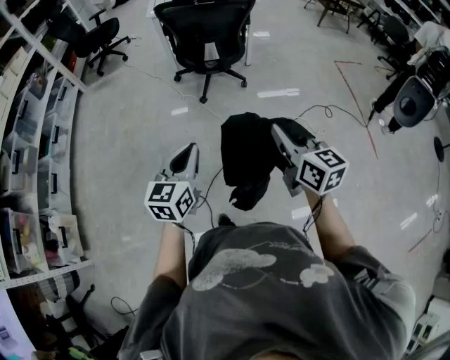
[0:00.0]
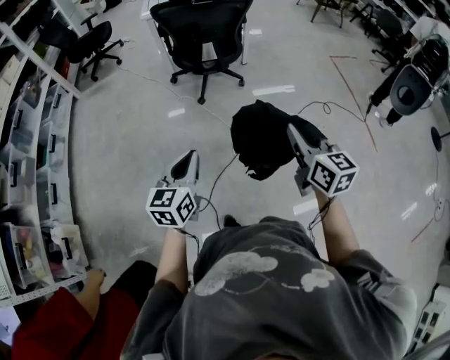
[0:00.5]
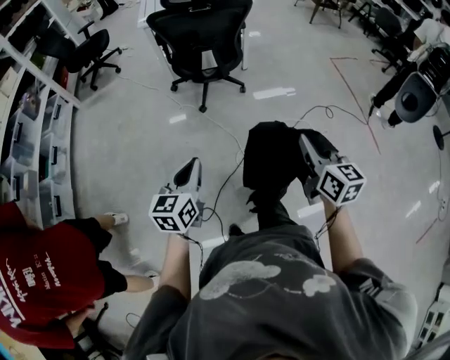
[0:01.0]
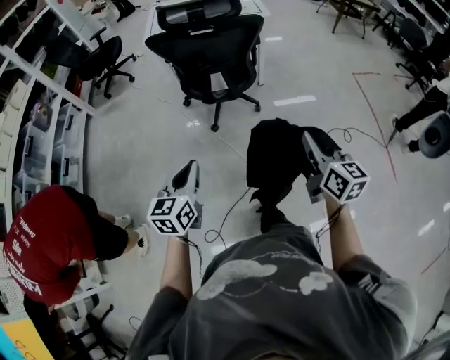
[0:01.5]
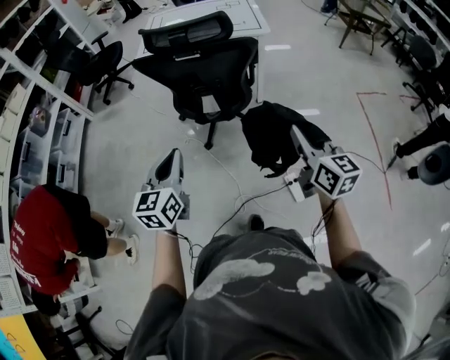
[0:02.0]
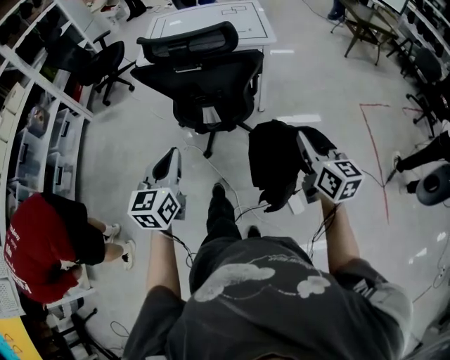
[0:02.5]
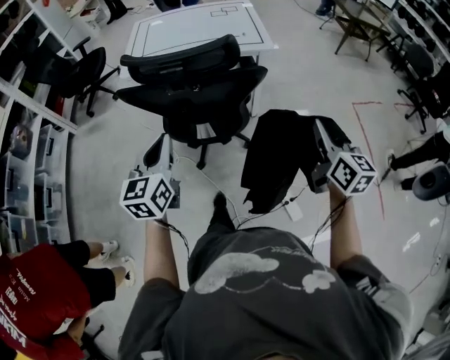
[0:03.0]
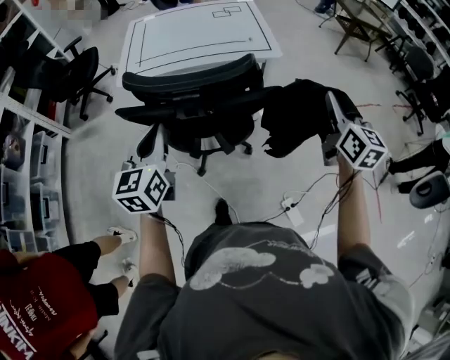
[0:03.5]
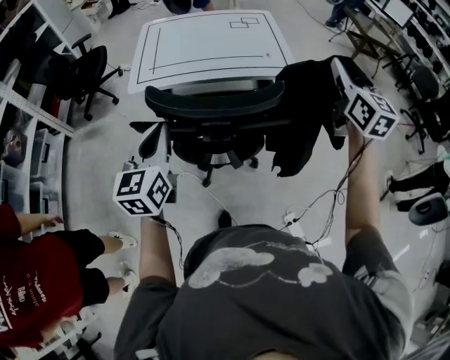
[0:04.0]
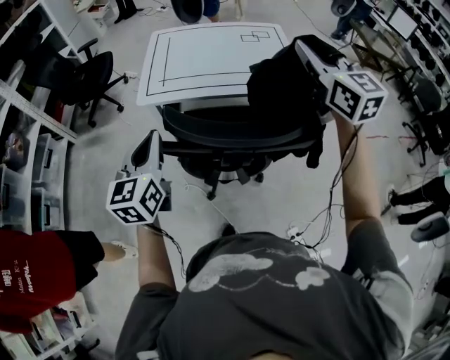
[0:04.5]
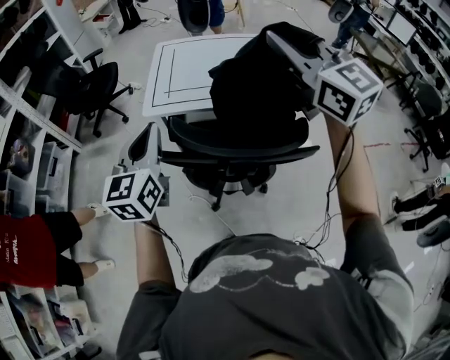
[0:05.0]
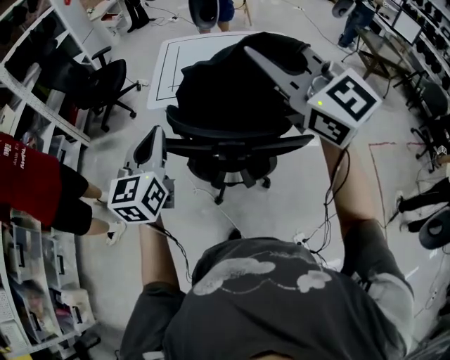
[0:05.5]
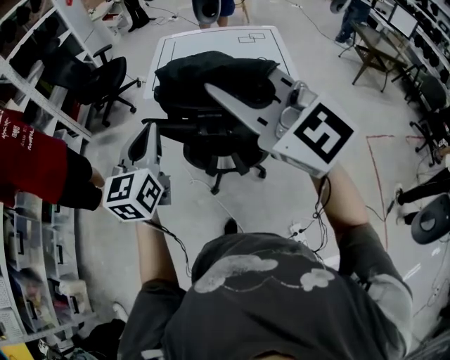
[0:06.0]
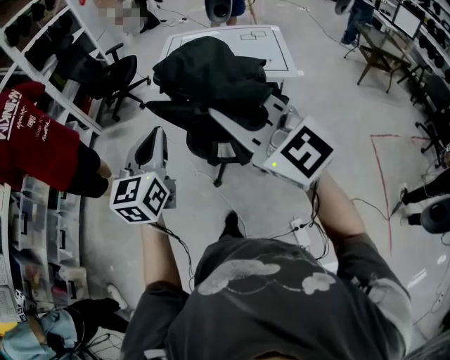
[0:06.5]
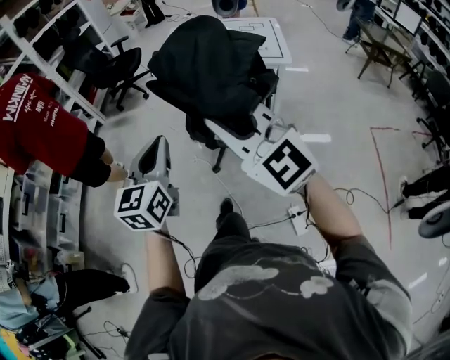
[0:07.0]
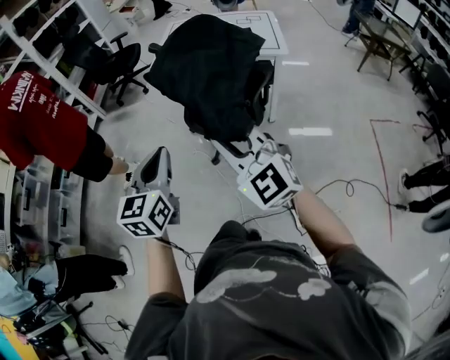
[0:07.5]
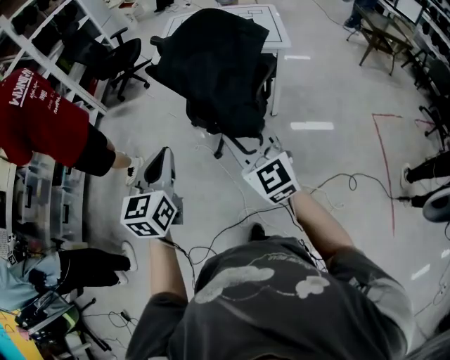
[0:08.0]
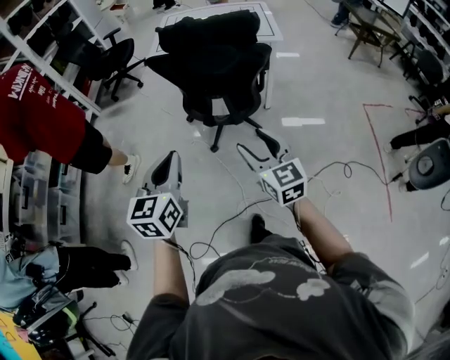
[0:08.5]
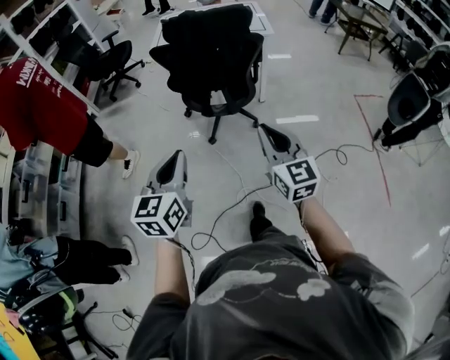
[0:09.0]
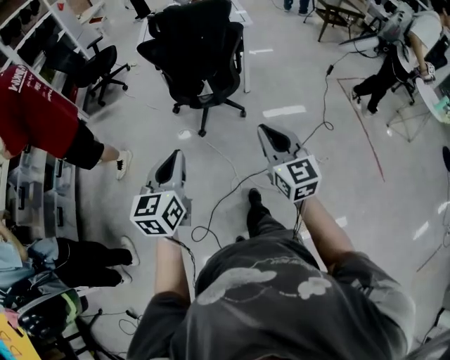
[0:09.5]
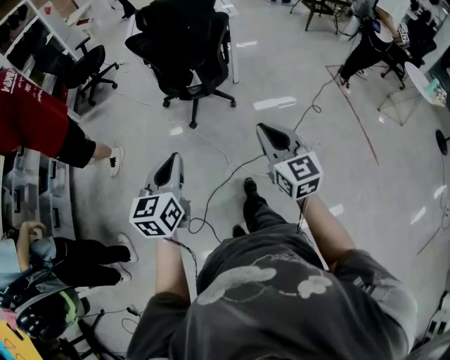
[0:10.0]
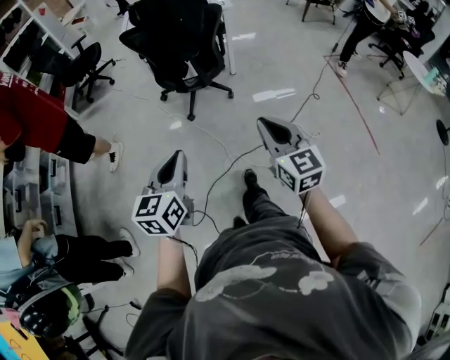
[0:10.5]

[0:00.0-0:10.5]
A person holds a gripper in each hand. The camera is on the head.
0:00.0 to 0:02.0: Both grippers travel together forward, about 40 cm.
0:02.0 to 0:04.0: Both grippers are carried forward, roughly 40 cm. The right gripper swivels approximately 20 degrees.
0:04.0 to 0:06.5: The left gripper changes place by about 20 cm. The right gripper changes place by roughly 40 cm, and rotates about 50 degrees.
0:06.5 to 0:08.5: The left gripper moves backward, some 25 cm. The right gripper goes some 30 cm downward and backward, rotates some 30 degrees, and opens its fingers.
0:08.5 to 0:10.5: Both grippers travel together backward, some 30 cm. The right gripper closes up.

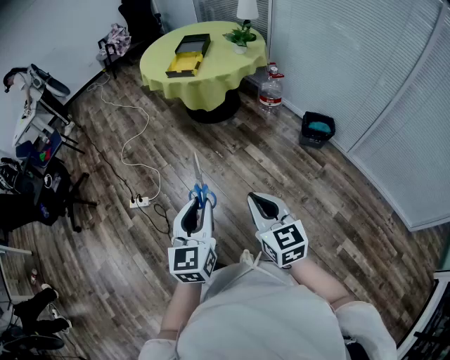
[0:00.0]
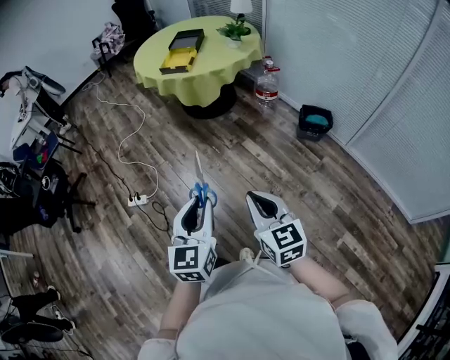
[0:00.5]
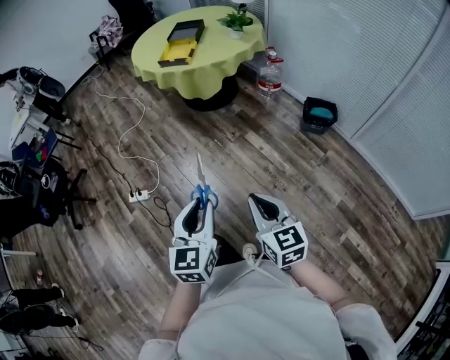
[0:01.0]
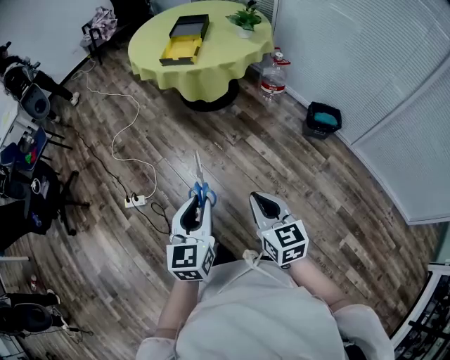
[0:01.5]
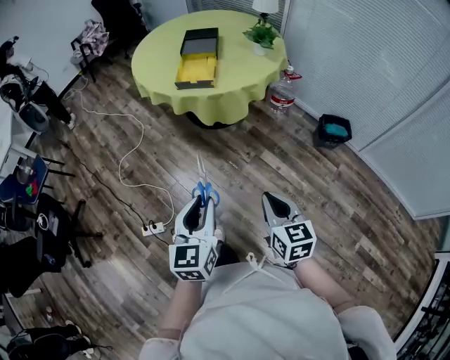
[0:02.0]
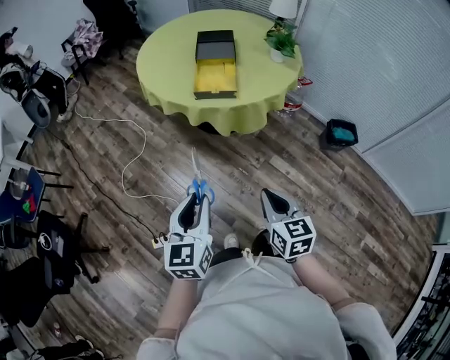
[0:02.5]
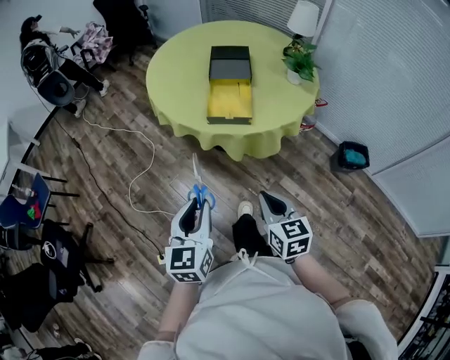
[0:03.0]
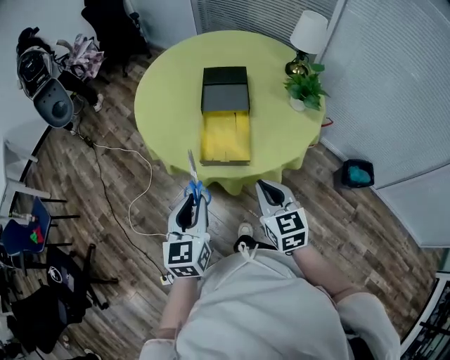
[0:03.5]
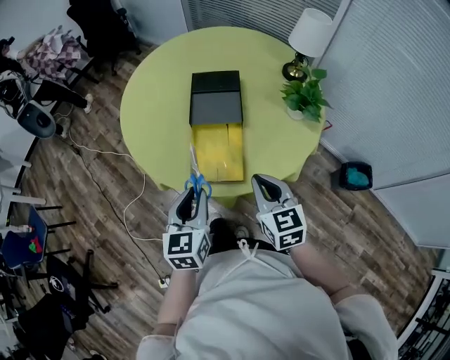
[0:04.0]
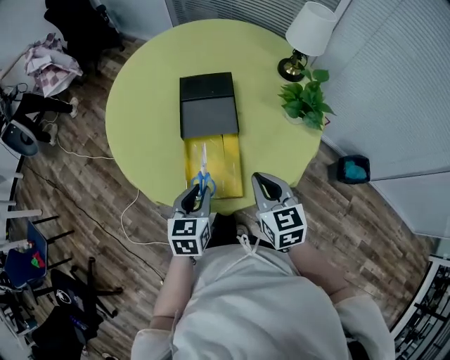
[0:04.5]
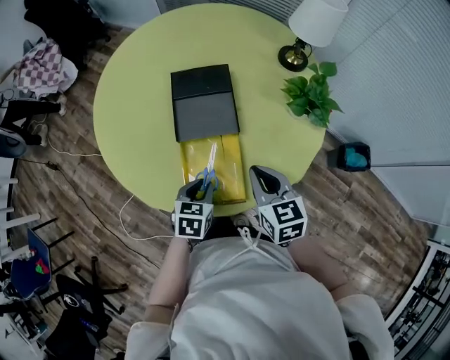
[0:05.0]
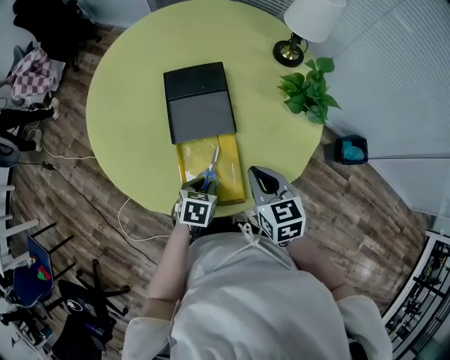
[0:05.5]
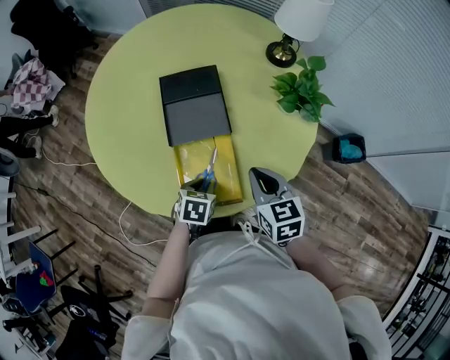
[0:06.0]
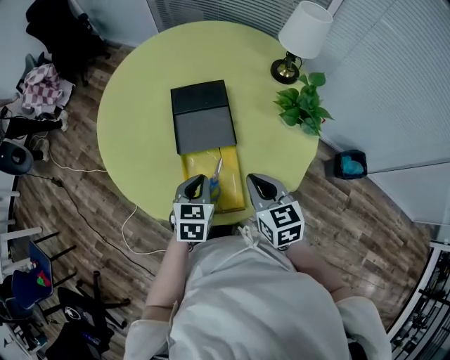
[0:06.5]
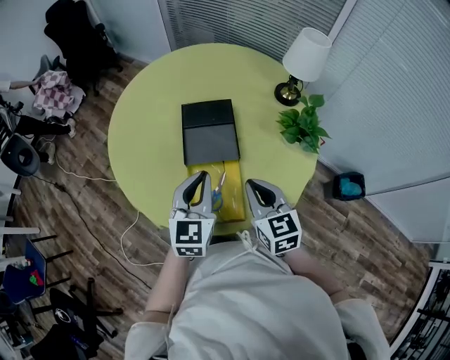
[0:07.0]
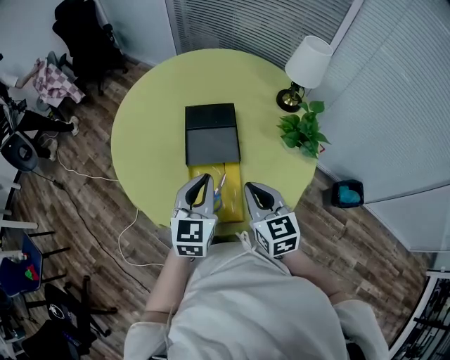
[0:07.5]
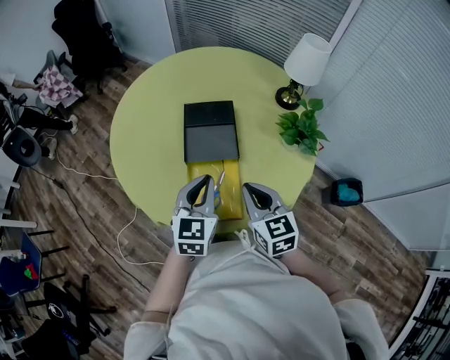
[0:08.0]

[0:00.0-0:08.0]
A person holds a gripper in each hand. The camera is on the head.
0:00.0 to 0:02.0: Both grippers move forward and to the left, some 35 cm.
0:02.0 to 0:04.0: Both grippers are carried forward, about 60 cm.
0:04.0 to 0:06.0: The right gripper heads forward and downward, covering about 15 cm, while the left gripper travels downward and forward by about 25 cm, and tilts its fingers some 40 degrees downward.
0:06.0 to 0:08.0: The left gripper travels upward by approximately 25 cm, and tips its fingers upward by roughly 40 degrees; the right gripper shifts about 10 cm upward.

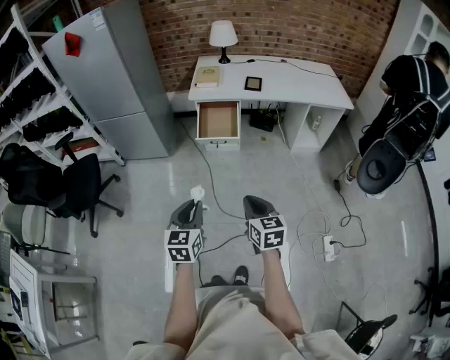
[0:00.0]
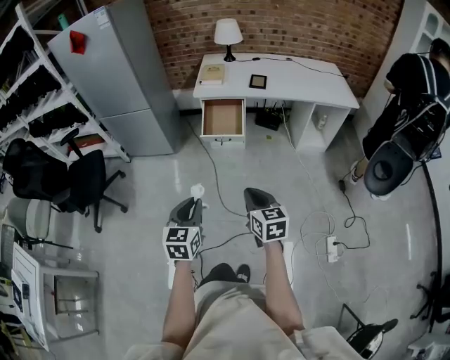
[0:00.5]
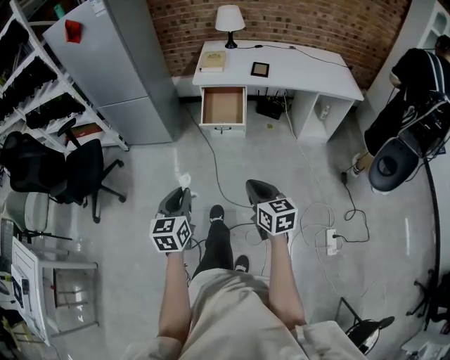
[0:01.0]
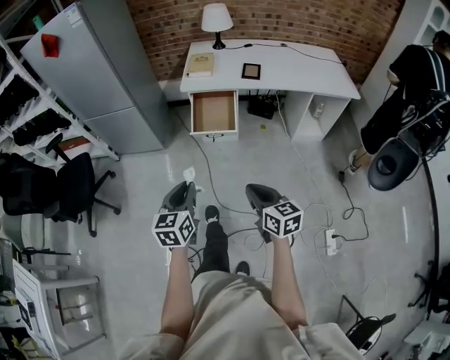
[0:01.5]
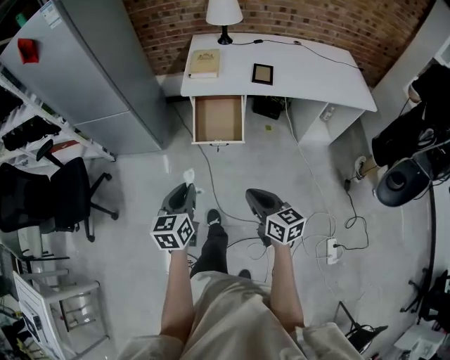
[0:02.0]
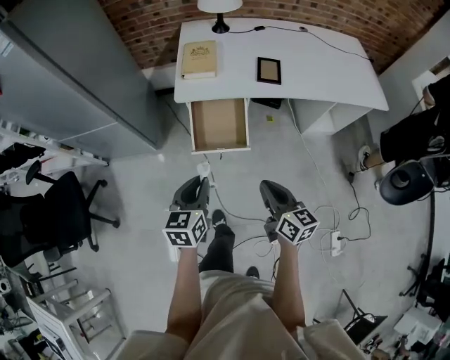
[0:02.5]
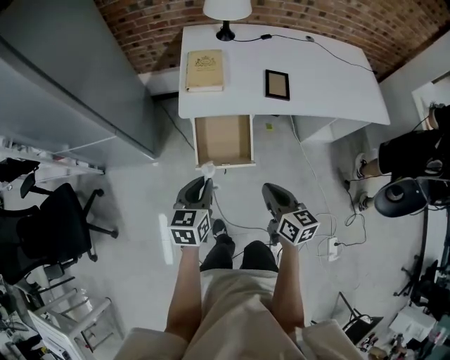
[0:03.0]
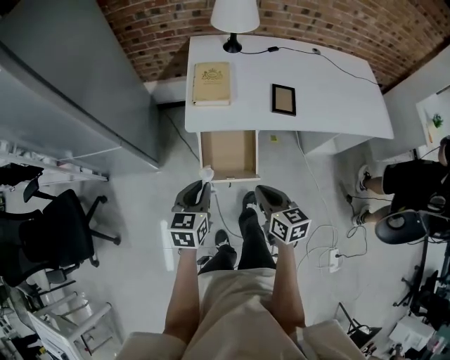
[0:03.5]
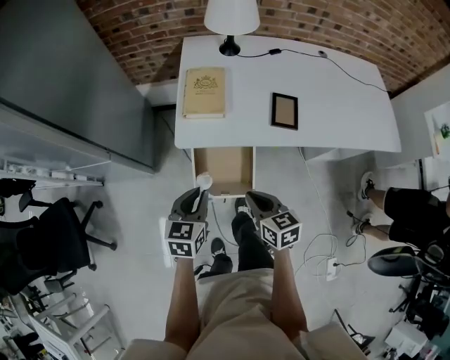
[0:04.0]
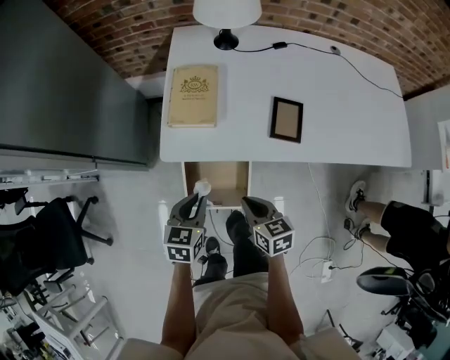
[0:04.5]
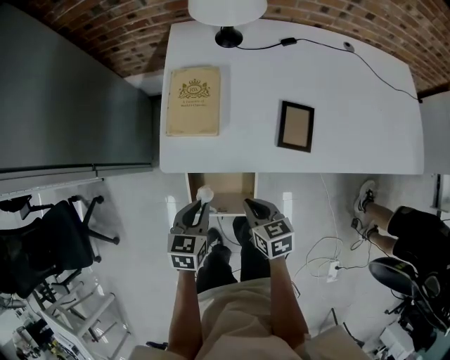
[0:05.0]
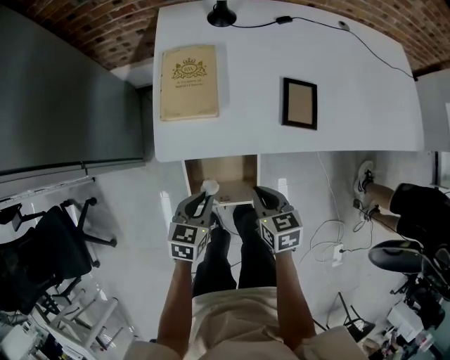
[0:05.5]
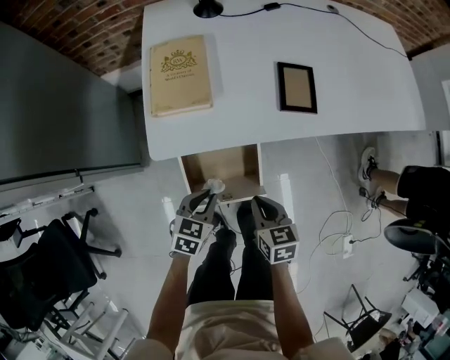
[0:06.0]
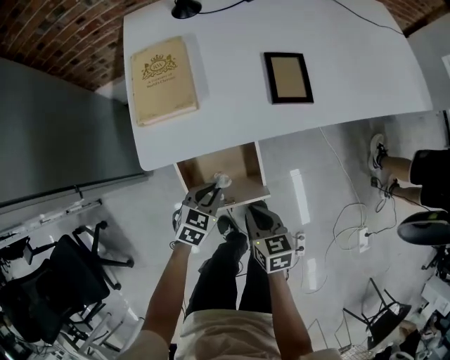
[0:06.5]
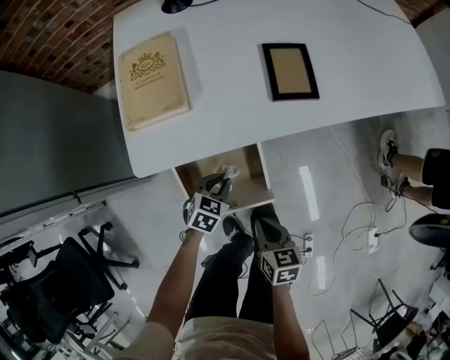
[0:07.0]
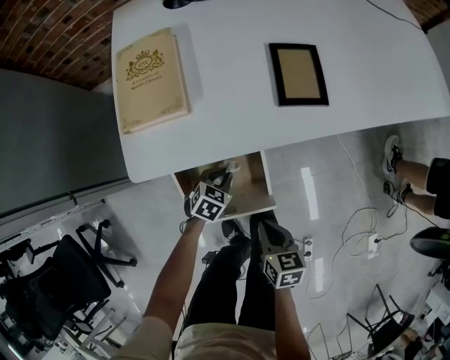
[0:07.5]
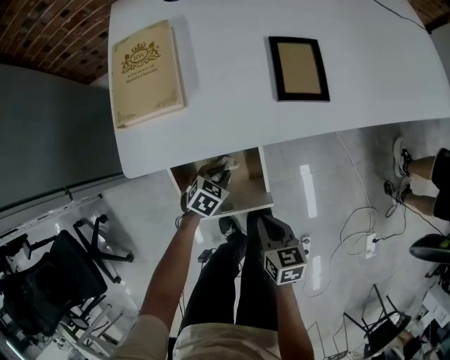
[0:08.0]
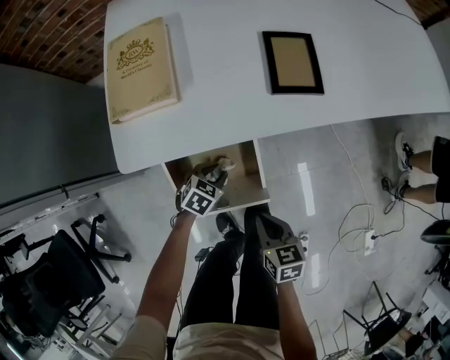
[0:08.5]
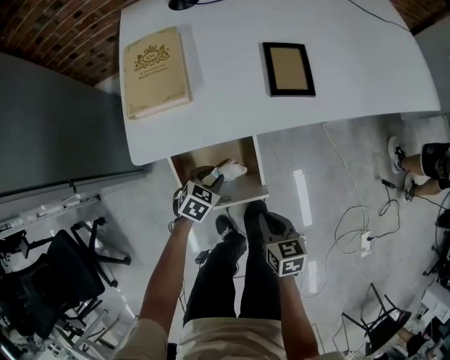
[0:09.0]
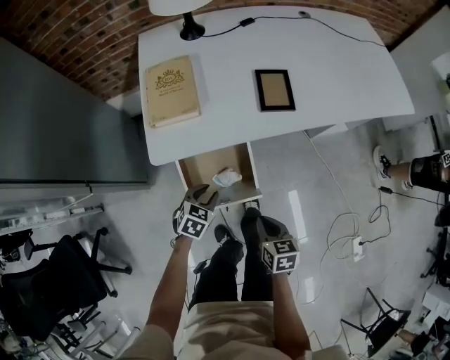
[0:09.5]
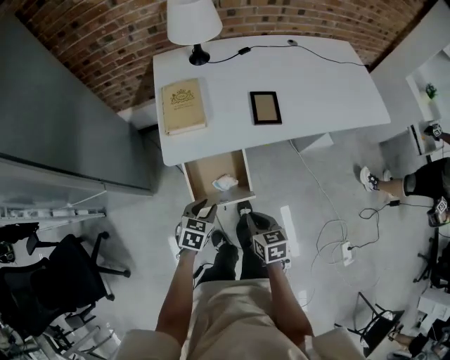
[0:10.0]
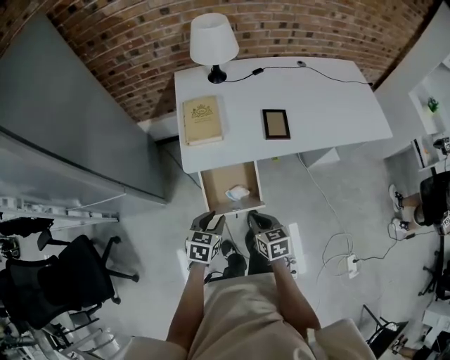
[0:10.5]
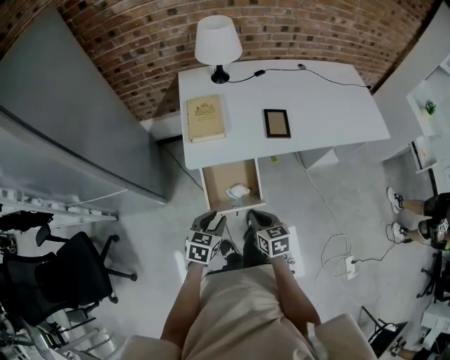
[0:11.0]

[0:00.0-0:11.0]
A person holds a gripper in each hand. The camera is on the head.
0:00.0 to 0:02.0: The grippers both shift forward by about 25 cm.
0:02.0 to 0:03.5: Both grippers move forward, about 30 cm.
0:03.5 to 0:05.5: The left gripper is displaced downward and forward by about 25 cm. The right gripper heads forward and downward, covering some 25 cm.
0:05.5 to 0:07.5: The right gripper heads downward and backward, covering roughly 15 cm; the left gripper is displaced downward by about 25 cm, and swivels roughly 30 degrees.
0:07.5 to 0:09.0: The left gripper shifts by roughly 5 cm.
0:09.0 to 0:11.0: The left gripper moves upward and backward, some 35 cm, and swivels approximately 30 degrees. Meanwhile the right gripper is displaced upward by roughly 20 cm.
